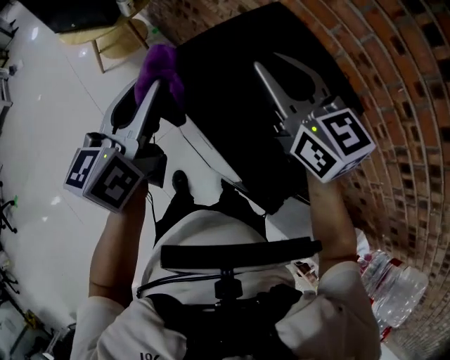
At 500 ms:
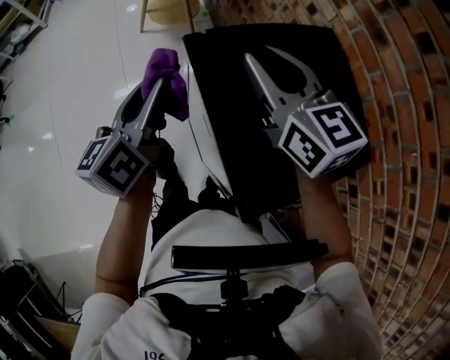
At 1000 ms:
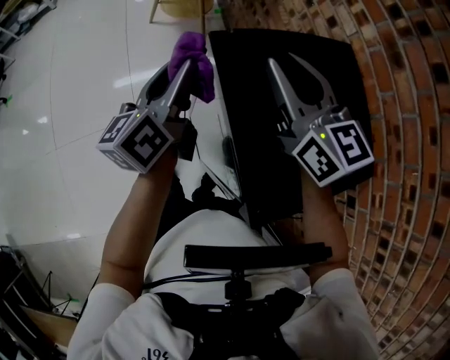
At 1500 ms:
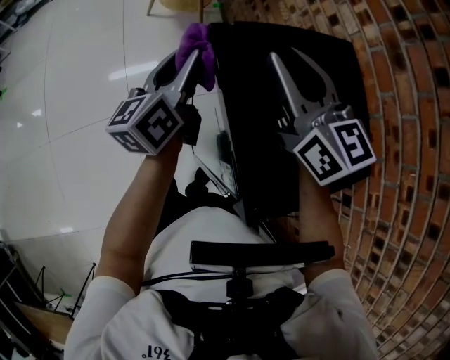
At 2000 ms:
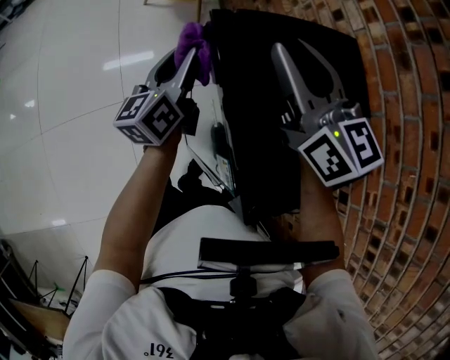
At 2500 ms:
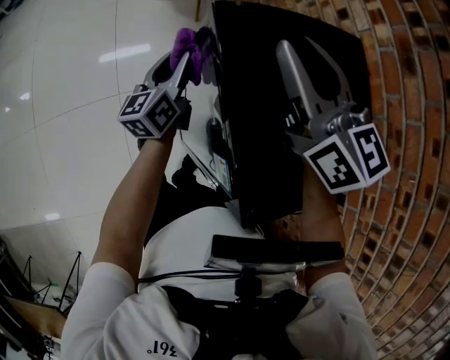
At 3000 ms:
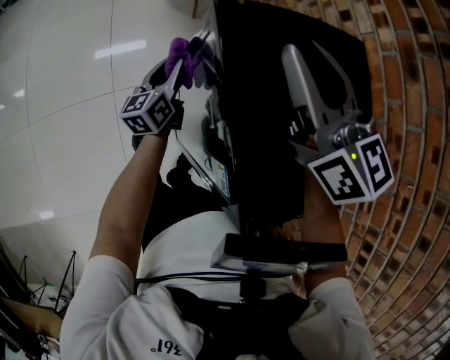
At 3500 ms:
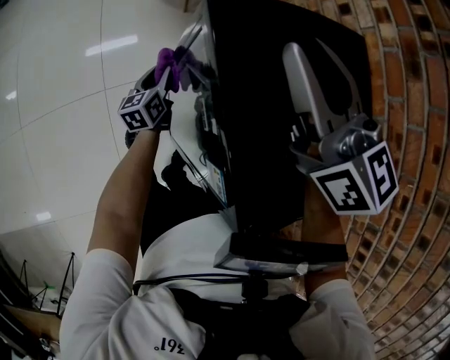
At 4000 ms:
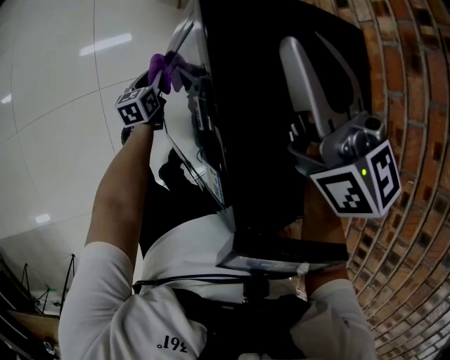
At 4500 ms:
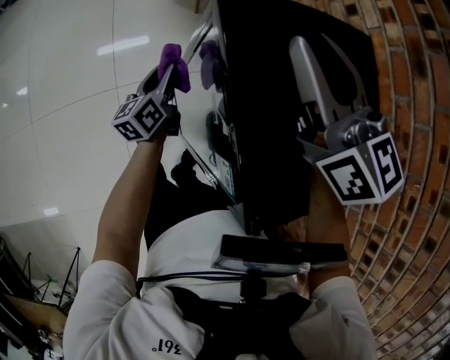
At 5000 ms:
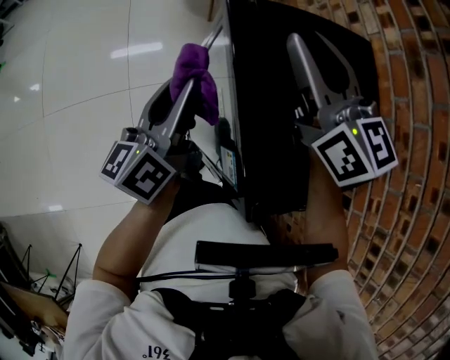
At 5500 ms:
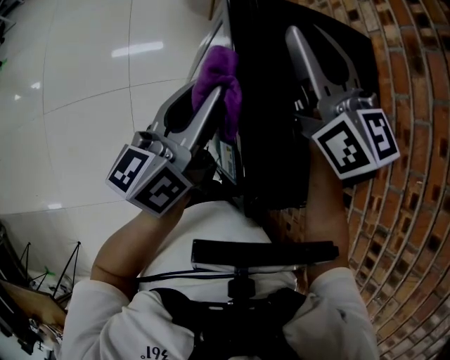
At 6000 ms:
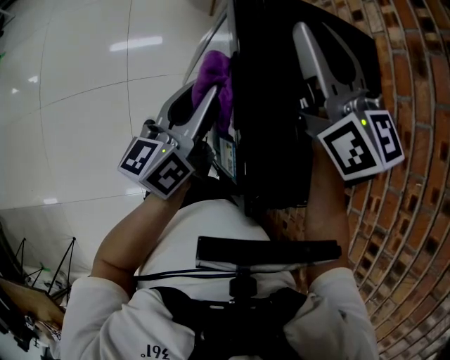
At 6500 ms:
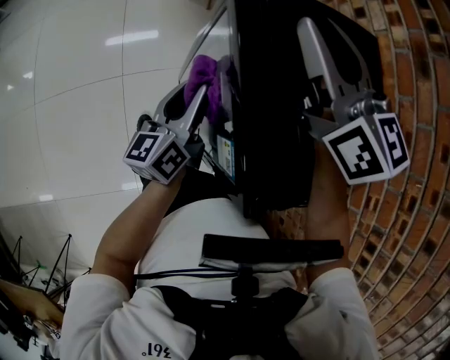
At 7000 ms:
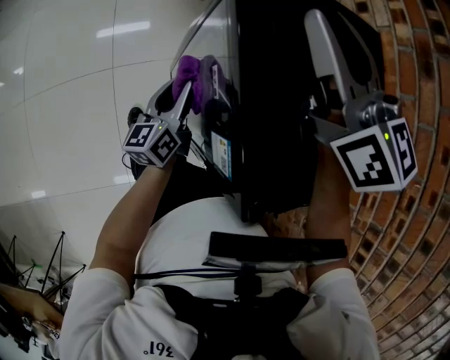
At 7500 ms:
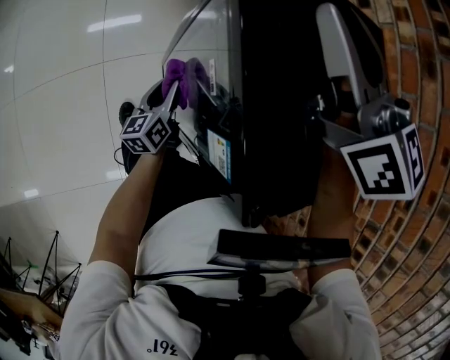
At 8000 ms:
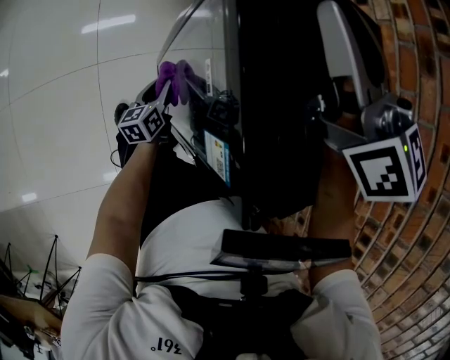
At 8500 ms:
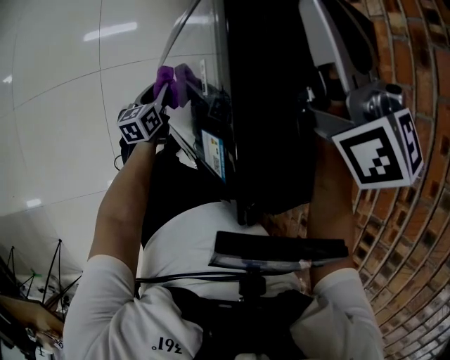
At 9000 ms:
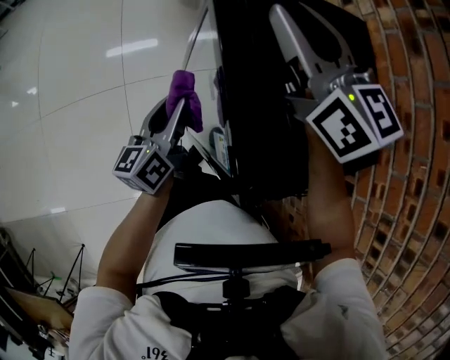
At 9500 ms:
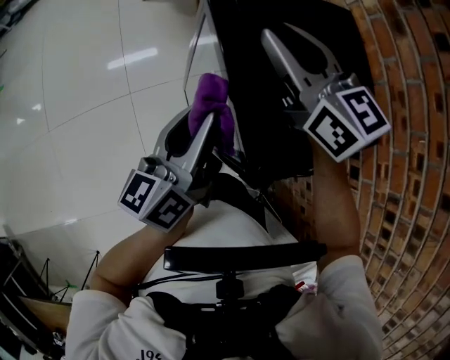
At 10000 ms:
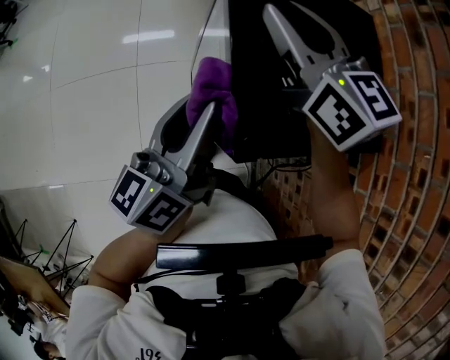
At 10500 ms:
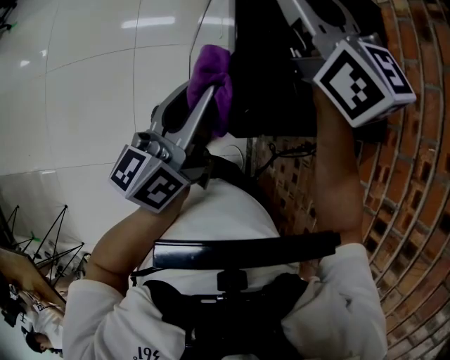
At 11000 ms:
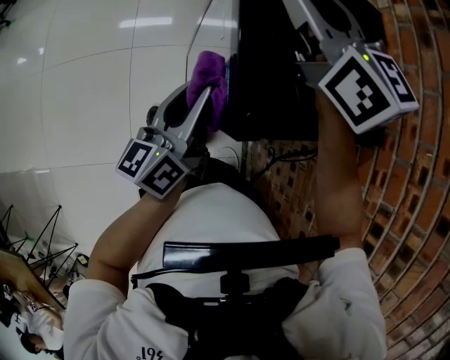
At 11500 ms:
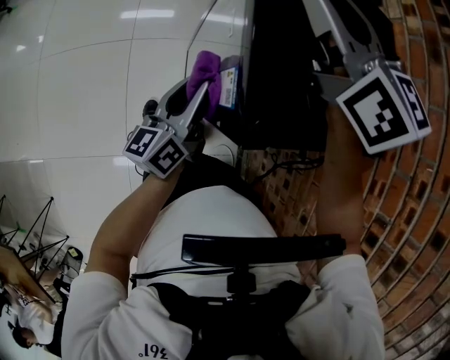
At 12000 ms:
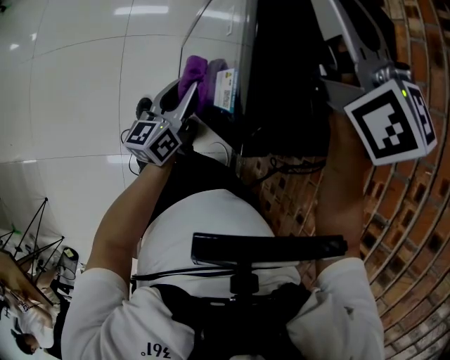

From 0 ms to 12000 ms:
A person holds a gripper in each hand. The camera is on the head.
From 0 ms to 2000 ms: The left gripper shifts about 15 cm downward, and swivels about 30 degrees; the right gripper ends up approximately 10 cm from where it was, and swivels roughly 20 degrees.
From 2000 ms to 4000 ms: The left gripper goes some 30 cm downward, and turns by some 30 degrees.
From 4000 ms to 6000 ms: The left gripper travels upward by some 30 cm, and tips its fingers upward by roughly 30 degrees.
From 6000 ms to 8000 ms: The left gripper is displaced downward by about 35 cm, and rotates about 30 degrees.
From 8000 ms to 10000 ms: The right gripper heads backward, covering roughly 5 cm. Meanwhile the left gripper goes about 40 cm upward, and turns by about 30 degrees.
From 10000 ms to 12000 ms: The left gripper goes approximately 25 cm downward.

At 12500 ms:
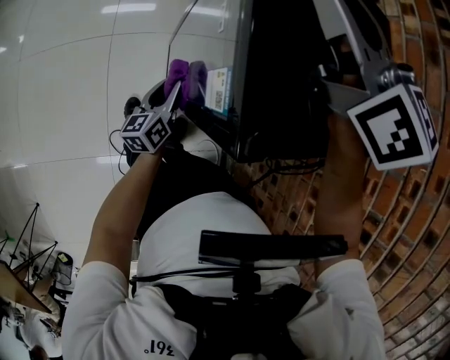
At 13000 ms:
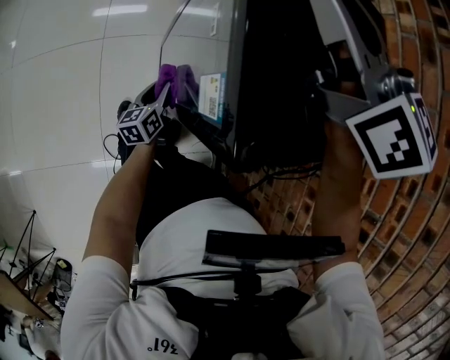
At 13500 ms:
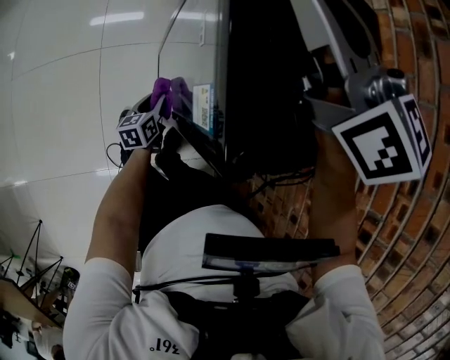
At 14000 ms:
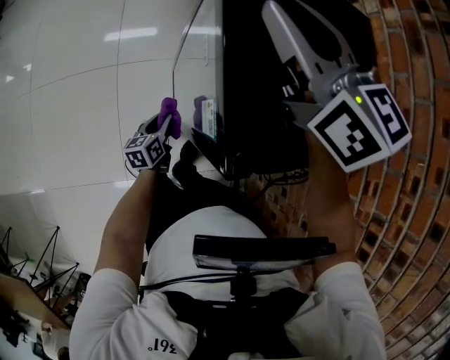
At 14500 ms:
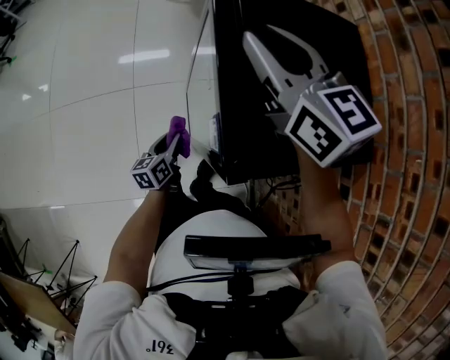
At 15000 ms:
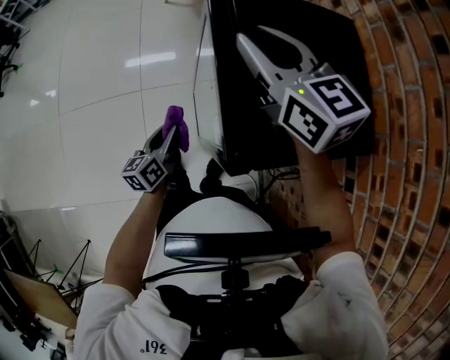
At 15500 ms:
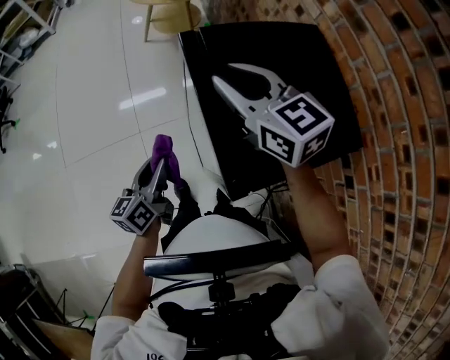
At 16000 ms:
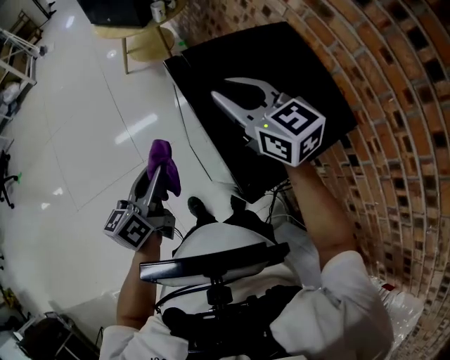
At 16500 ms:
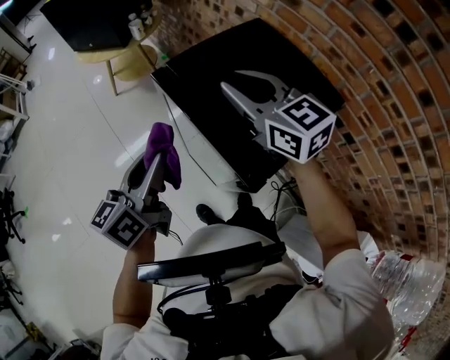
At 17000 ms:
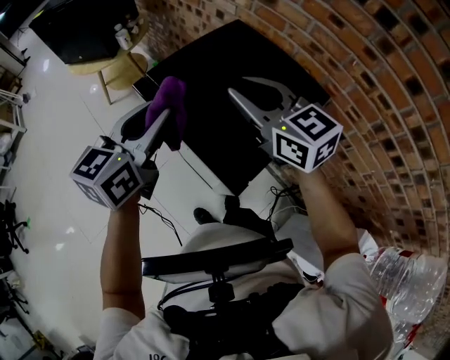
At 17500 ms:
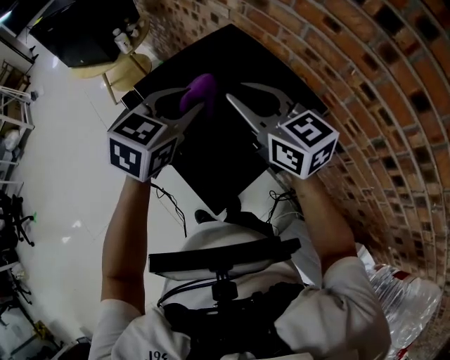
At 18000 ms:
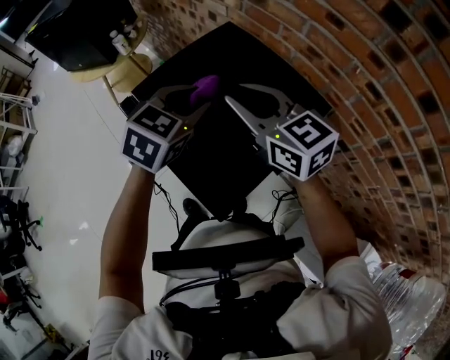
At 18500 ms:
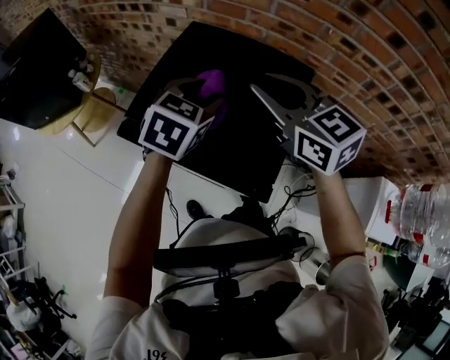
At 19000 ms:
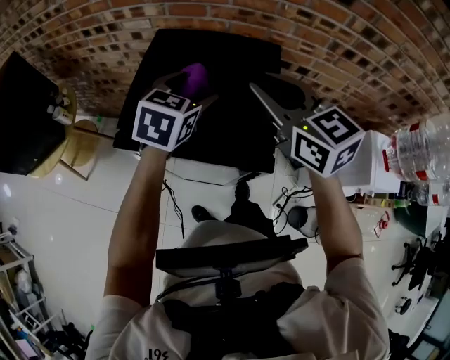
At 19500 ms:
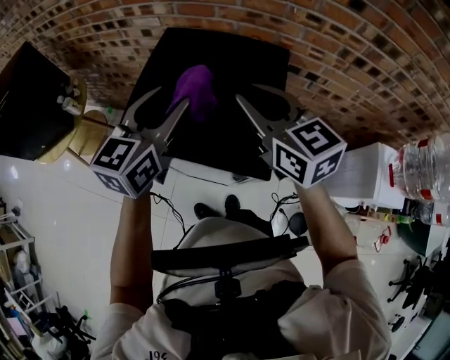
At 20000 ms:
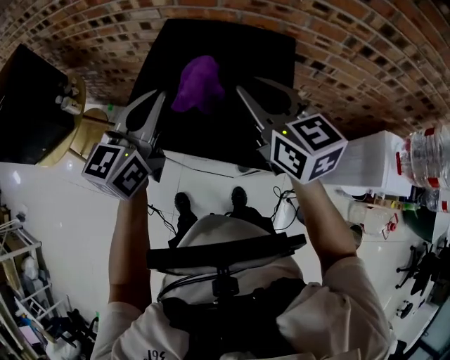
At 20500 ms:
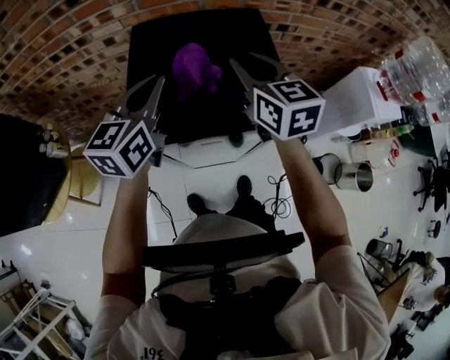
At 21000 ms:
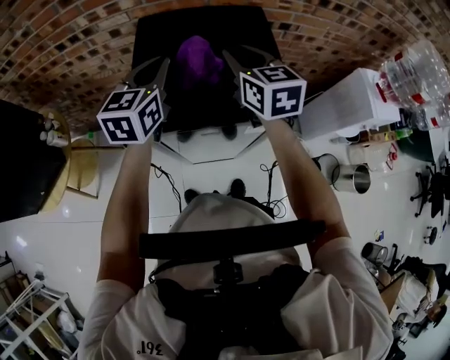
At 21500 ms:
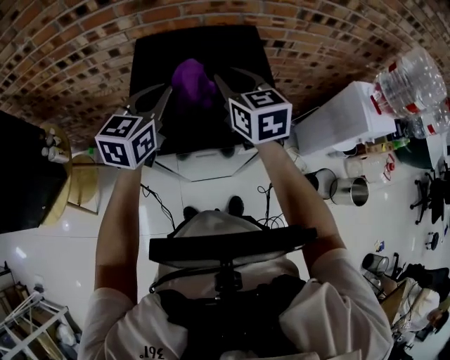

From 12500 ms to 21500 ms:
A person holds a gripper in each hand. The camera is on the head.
From 12500 ms to 14500 ms: The left gripper travels downward and back again, some 10 cm each way.
From 14500 ms to 17000 ms: The right gripper ends up about 10 cm from where it was, and rotates some 30 degrees. Meanwhile the left gripper heads upward, covering roughly 40 cm, and swivels roughly 60 degrees.
From 17000 ms to 19500 ms: The left gripper goes downward and returns, roughly 5 cm each way, rotates some 30 degrees, and opens up; the right gripper changes place by approximately 5 cm, and changes its angle by roughly 40 degrees.
From 19500 ms to 21500 ms: The right gripper heads downward, covering approximately 5 cm, and rotates about 30 degrees. The left gripper changes place by some 10 cm, turns by roughly 20 degrees, and closes.

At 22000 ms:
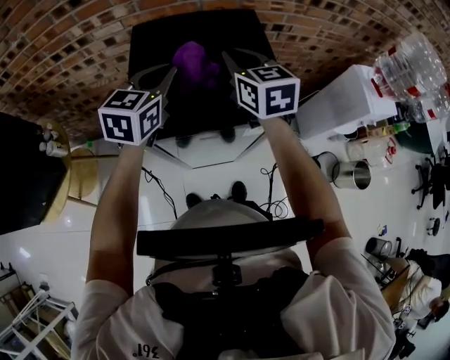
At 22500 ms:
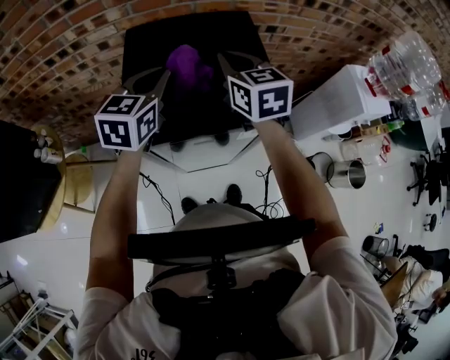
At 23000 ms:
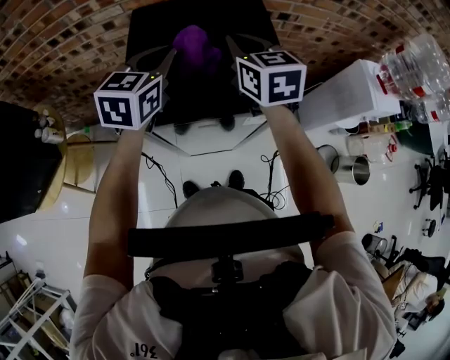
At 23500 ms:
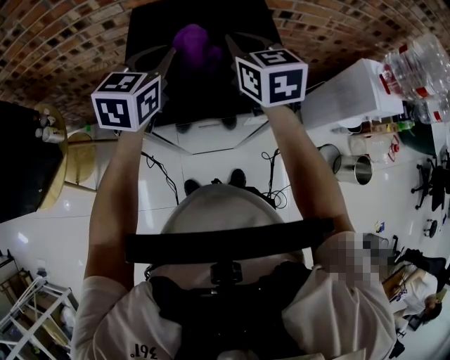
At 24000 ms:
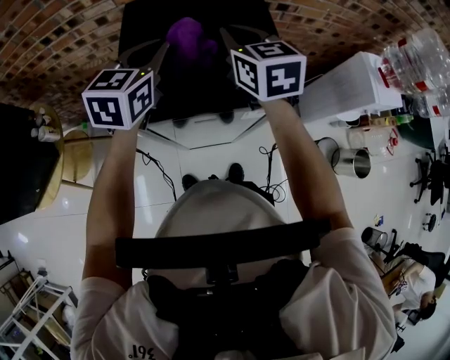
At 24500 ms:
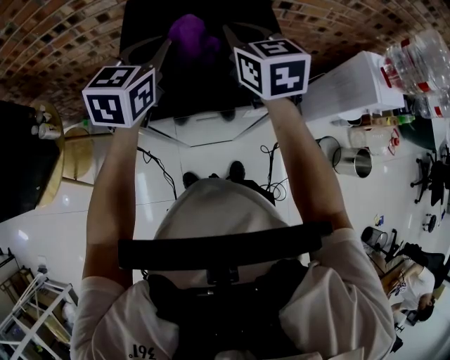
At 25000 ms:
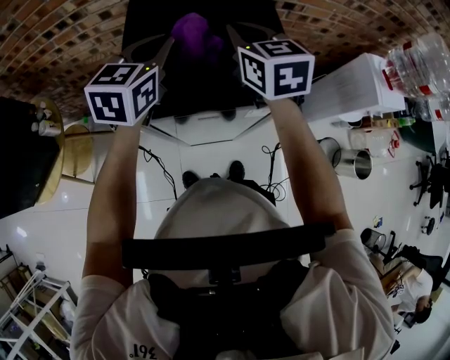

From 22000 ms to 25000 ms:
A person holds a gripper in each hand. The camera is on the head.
From 22000 ms to 25000 ms: Neither gripper changes place.

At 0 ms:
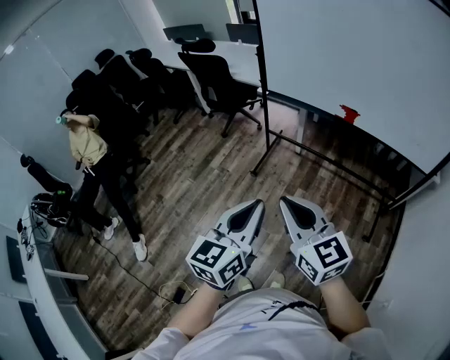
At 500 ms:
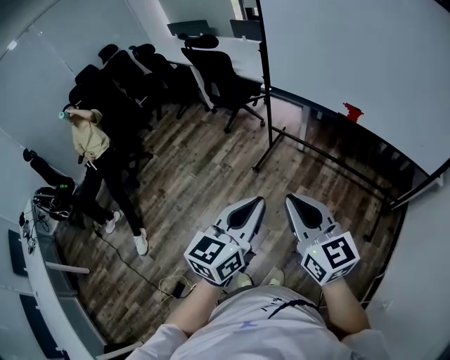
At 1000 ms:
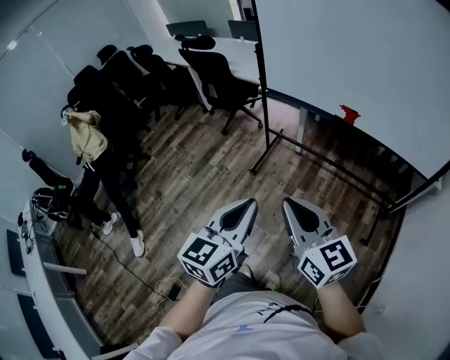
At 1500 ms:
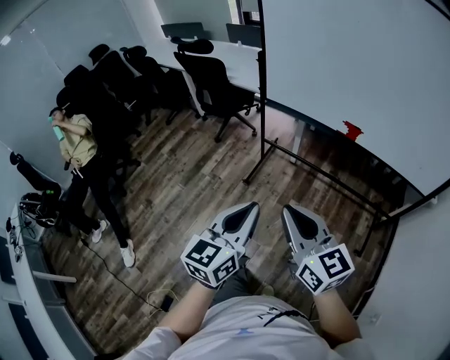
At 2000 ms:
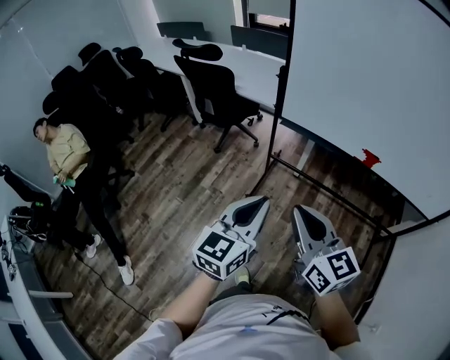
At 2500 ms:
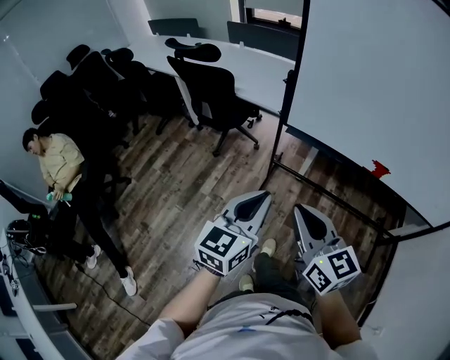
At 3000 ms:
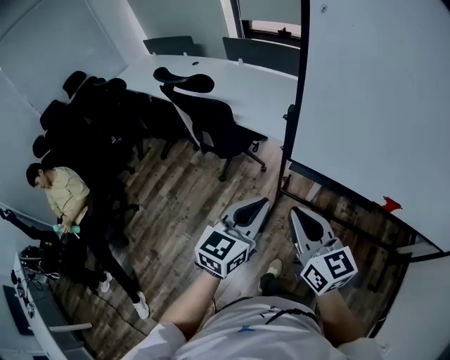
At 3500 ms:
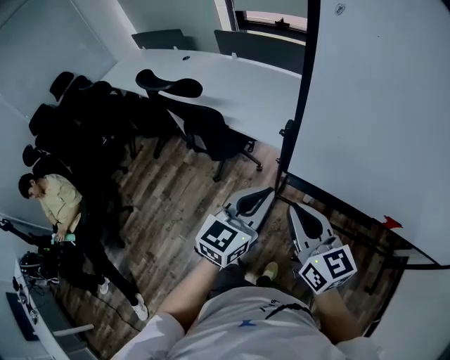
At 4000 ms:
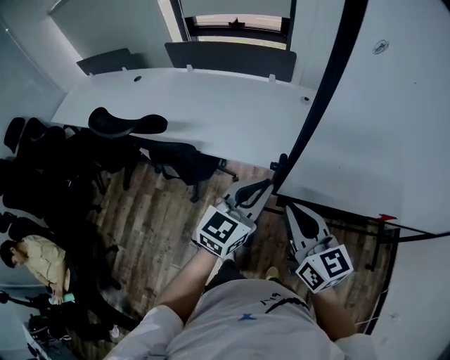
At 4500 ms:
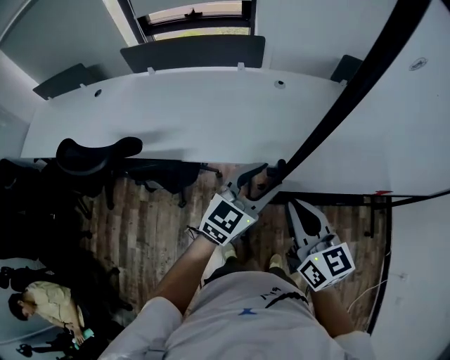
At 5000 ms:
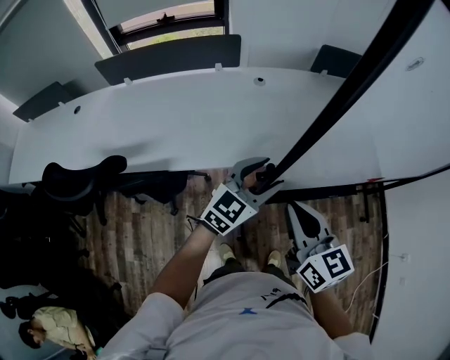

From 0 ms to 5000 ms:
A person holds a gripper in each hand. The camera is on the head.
From 0 ms to 2500 ms: The two grippers go some 35 cm forward.
From 2500 ms to 5000 ms: The two grippers travel together, roughly 50 cm. The right gripper changes its angle by about 40 degrees, while the left gripper turns by roughly 50 degrees, and opens up.
